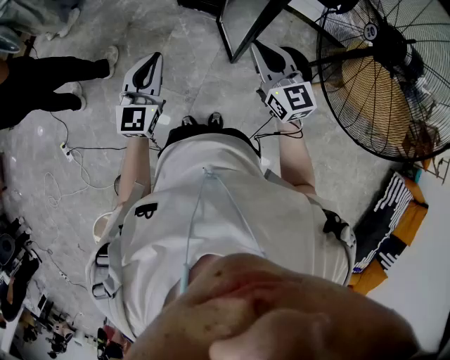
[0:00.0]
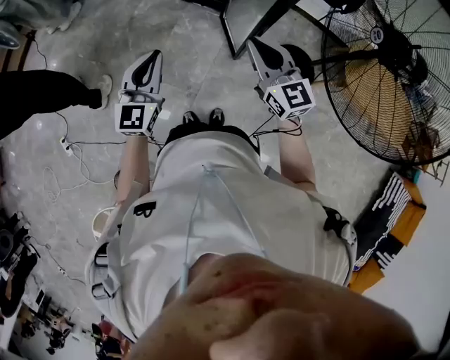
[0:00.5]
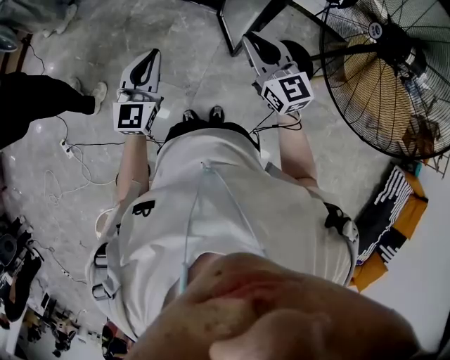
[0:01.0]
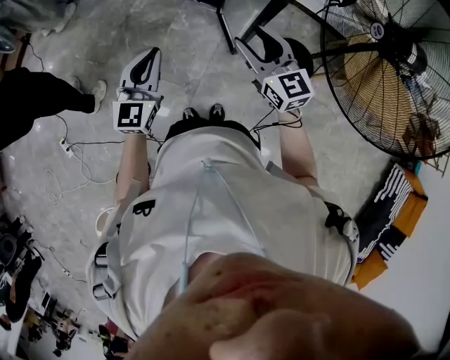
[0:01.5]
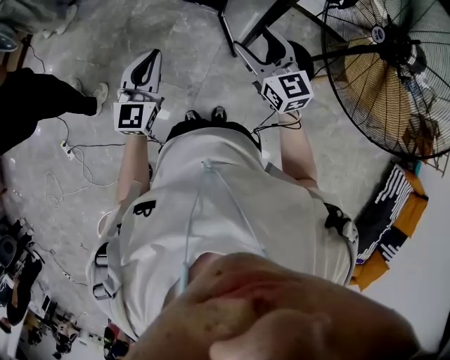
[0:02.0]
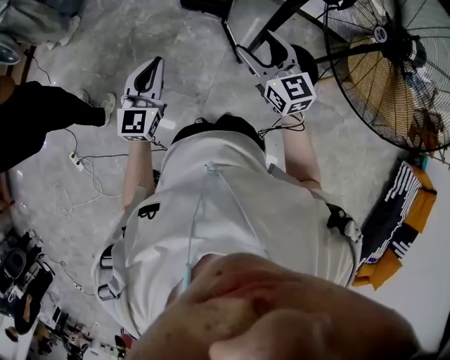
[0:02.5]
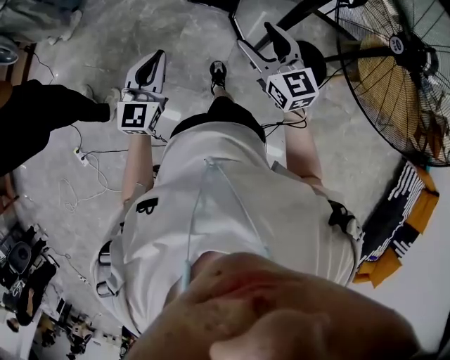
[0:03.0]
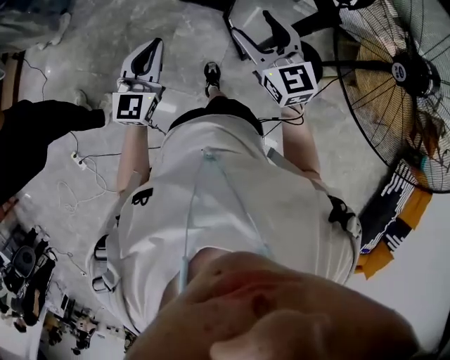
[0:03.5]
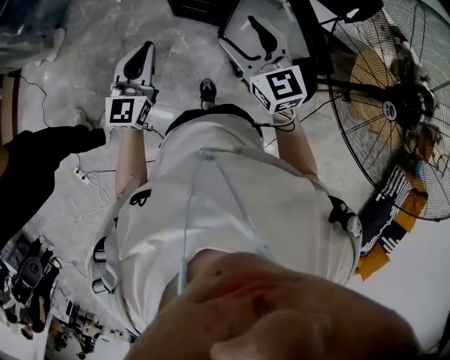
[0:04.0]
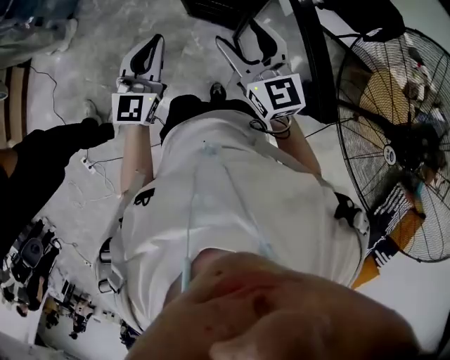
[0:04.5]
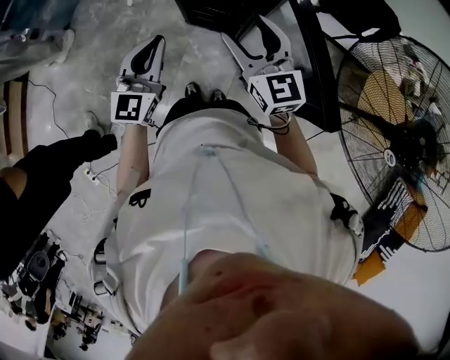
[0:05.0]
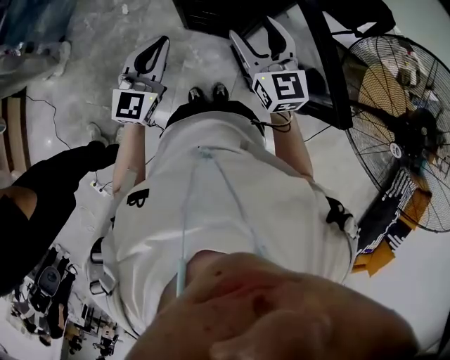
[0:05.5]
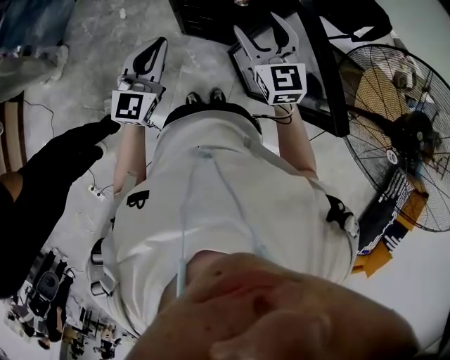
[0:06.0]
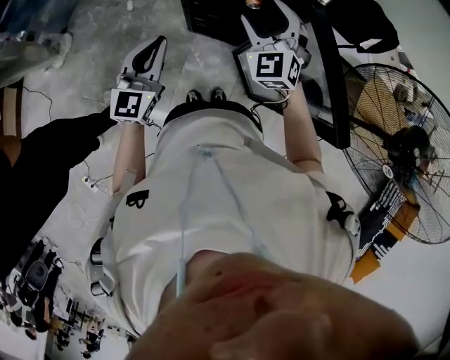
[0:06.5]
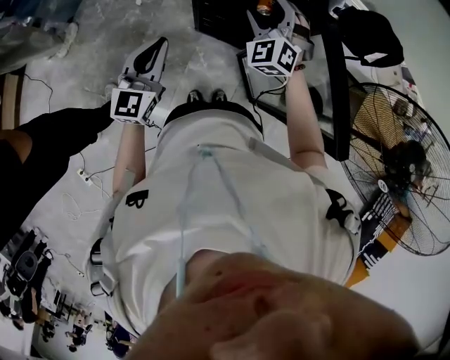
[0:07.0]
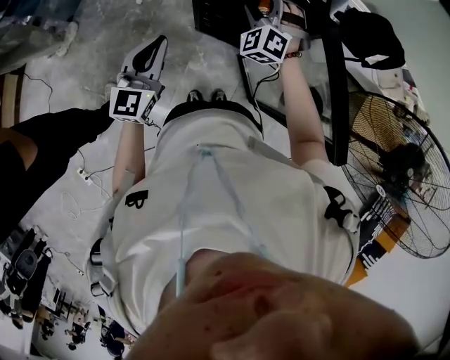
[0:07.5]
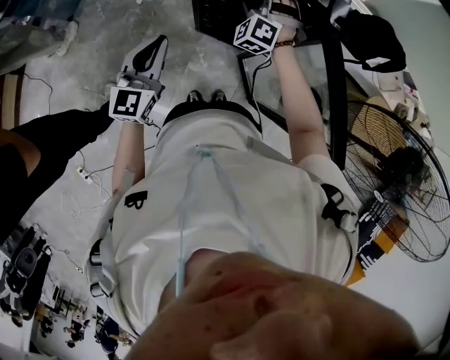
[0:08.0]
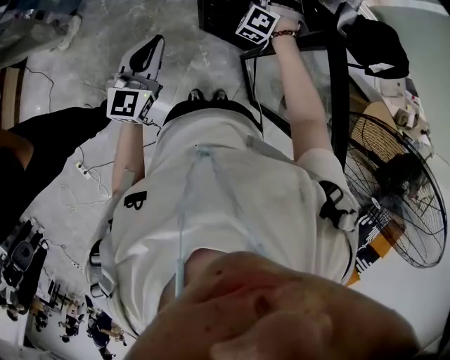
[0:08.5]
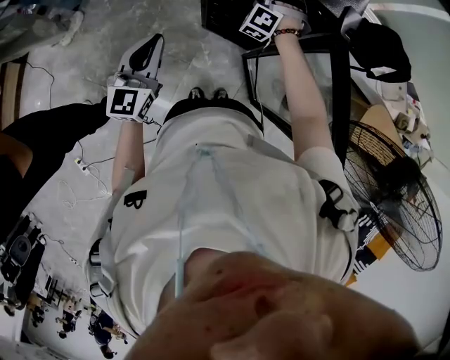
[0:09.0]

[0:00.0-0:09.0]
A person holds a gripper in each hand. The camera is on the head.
0:00.0 to 0:02.0: The right gripper is displaced to the left by roughly 5 cm, and opens its fingers.
0:02.0 to 0:04.5: The two grippers go about 35 cm forward.
0:04.5 to 0:07.0: The left gripper shifts roughly 15 cm to the left and forward. Meanwhile the right gripper shifts roughly 20 cm forward, and twists approximately 50 degrees counterclockwise, seen from behind.
0:07.0 to 0:09.0: The right gripper shifts approximately 15 cm forward and downward, rotates roughly 30 degrees, and closes up.

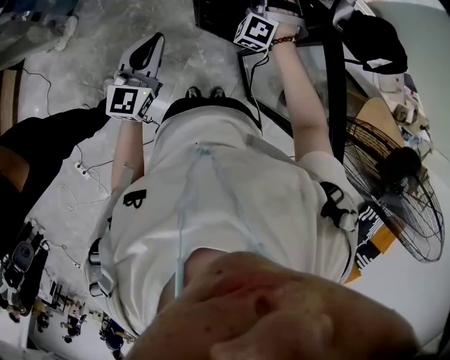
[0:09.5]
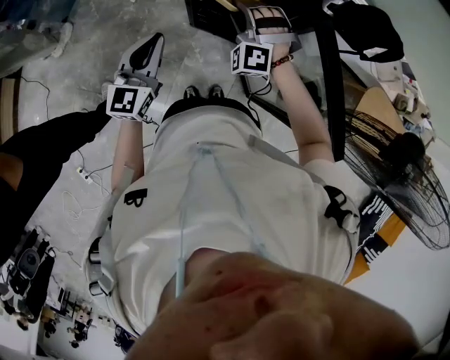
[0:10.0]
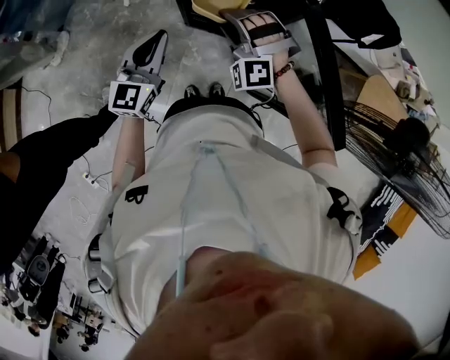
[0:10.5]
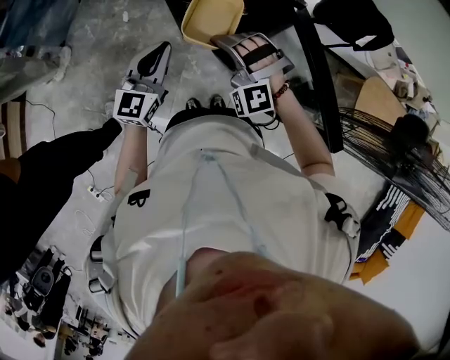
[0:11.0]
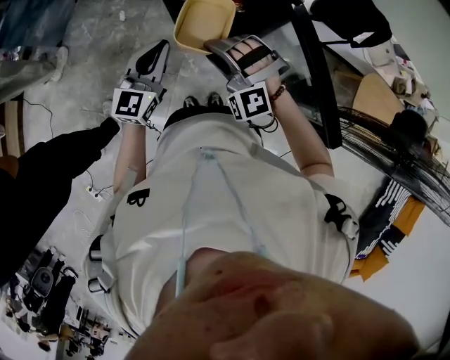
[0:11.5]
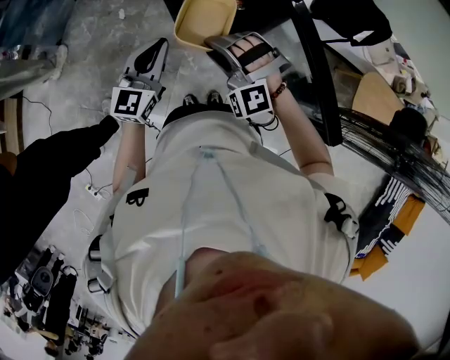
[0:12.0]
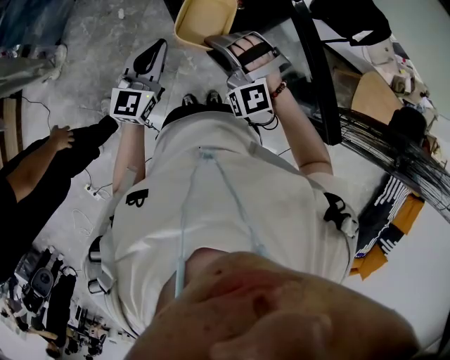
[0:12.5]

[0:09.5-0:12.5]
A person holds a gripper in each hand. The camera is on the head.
0:09.5 to 0:11.0: The right gripper goes approximately 20 cm backward, and changes its angle by about 30 degrees; the left gripper goes some 10 cm to the right.
0:11.0 to 0:12.5: There are only small adjustments of the grippers.

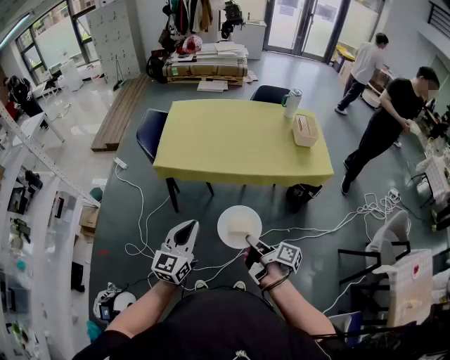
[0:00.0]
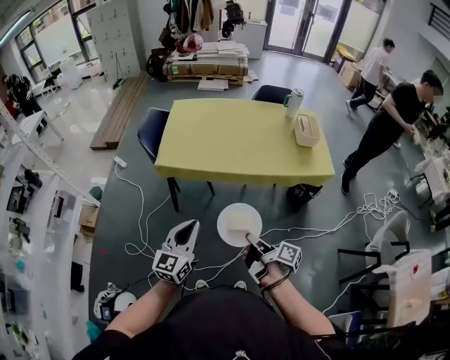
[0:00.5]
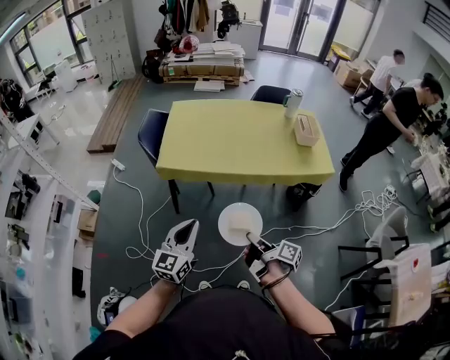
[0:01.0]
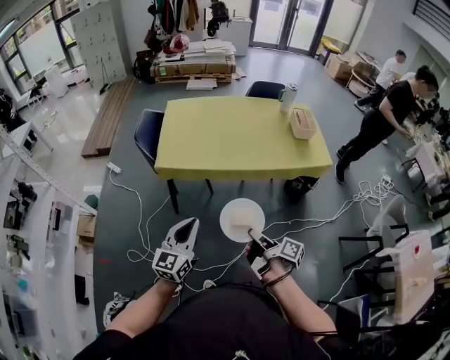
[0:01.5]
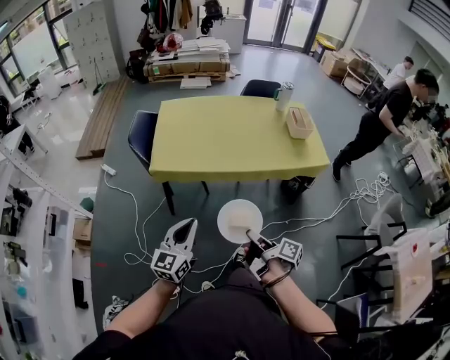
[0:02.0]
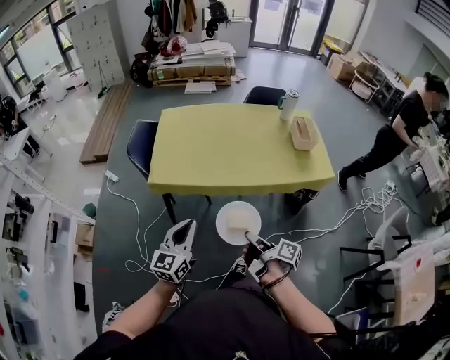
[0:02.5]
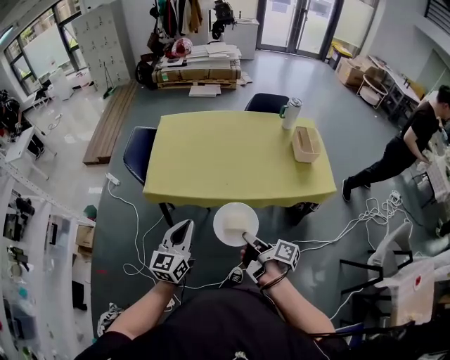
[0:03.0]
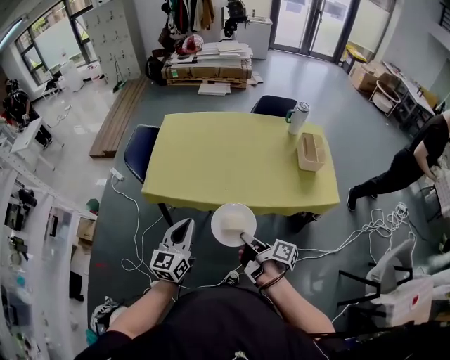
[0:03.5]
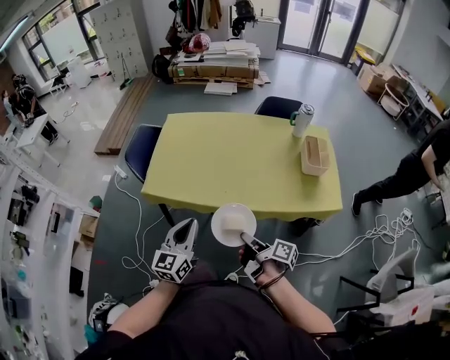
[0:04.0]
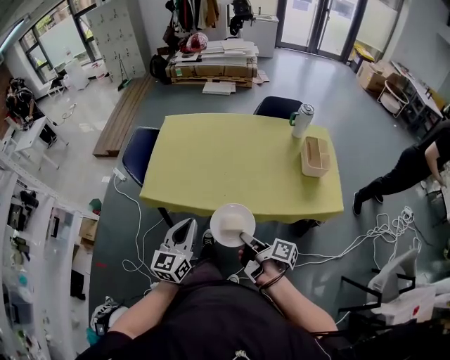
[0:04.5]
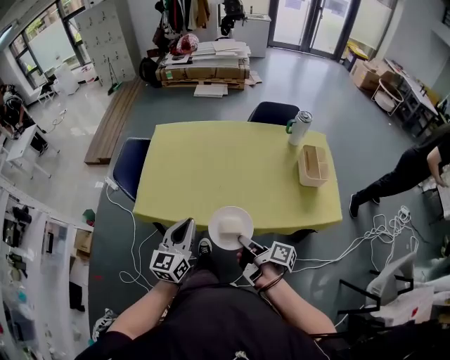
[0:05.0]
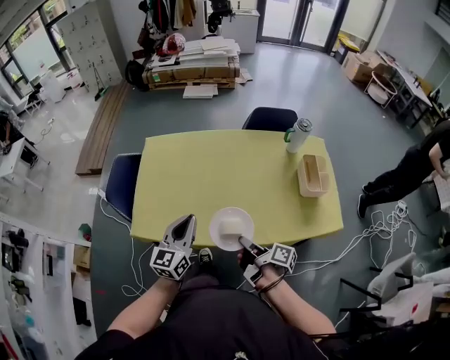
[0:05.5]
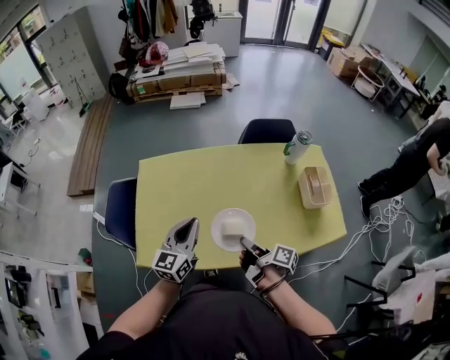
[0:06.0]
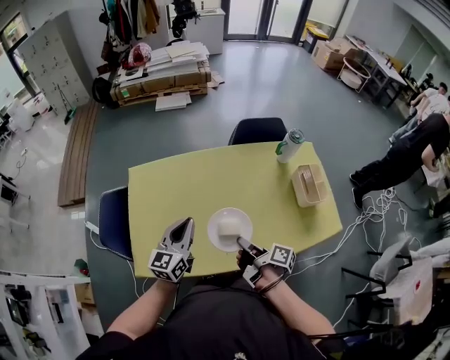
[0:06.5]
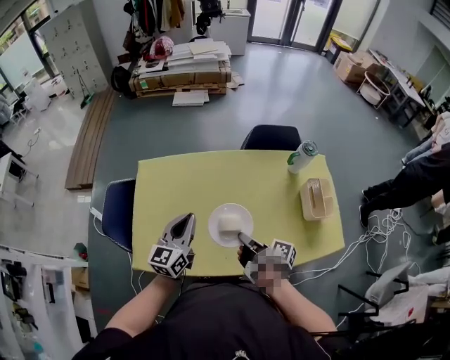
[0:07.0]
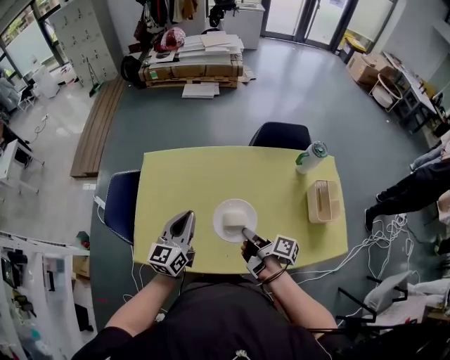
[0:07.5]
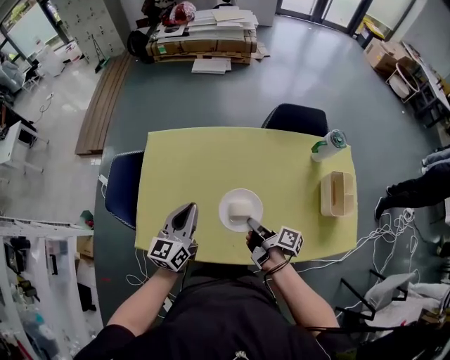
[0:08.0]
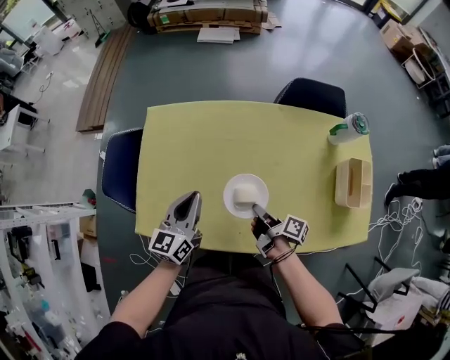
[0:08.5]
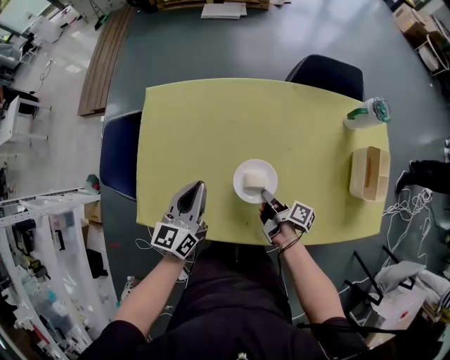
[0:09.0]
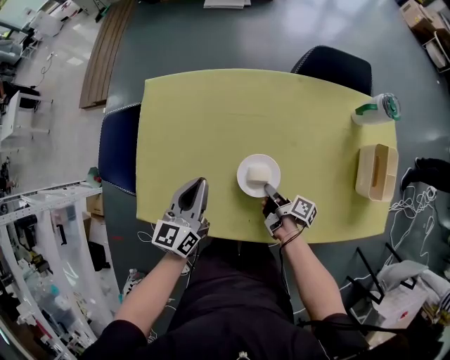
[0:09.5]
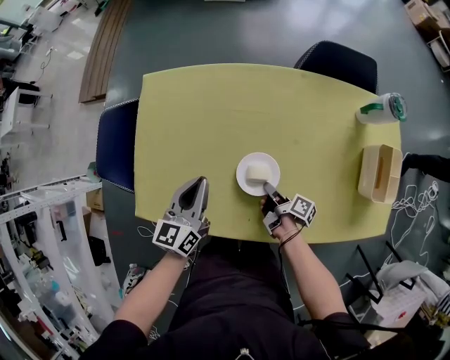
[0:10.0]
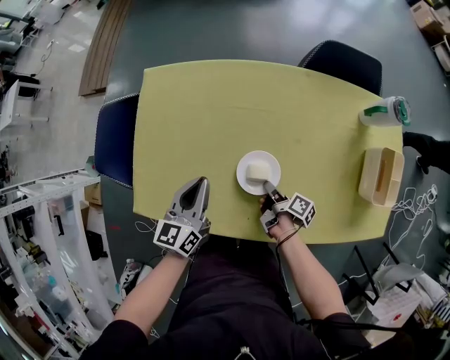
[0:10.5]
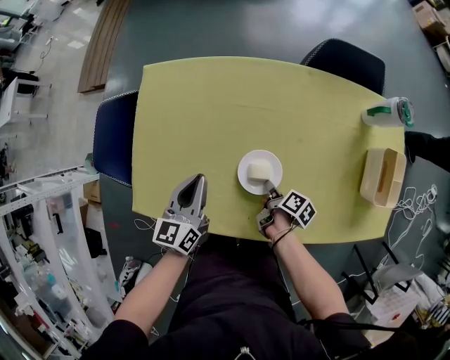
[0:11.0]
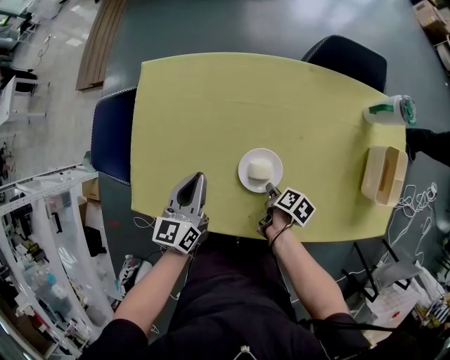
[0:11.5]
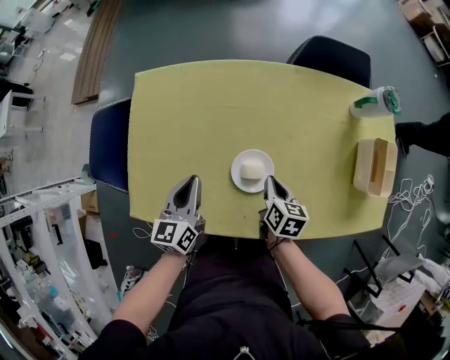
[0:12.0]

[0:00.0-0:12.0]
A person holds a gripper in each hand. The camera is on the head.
0:00.0 to 0:02.0: The left gripper ends up approximately 10 cm from where it was.
0:02.0 to 0:04.0: The left gripper shifts by approximately 25 cm.
0:04.0 to 0:06.0: The left gripper changes place by roughly 35 cm.
0:06.0 to 0:08.0: The left gripper ends up approximately 10 cm from where it was.
0:08.0 to 0:10.0: The left gripper goes approximately 15 cm downward.

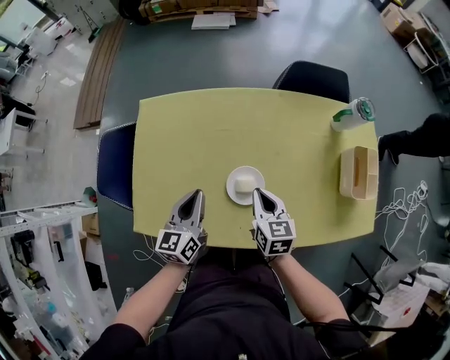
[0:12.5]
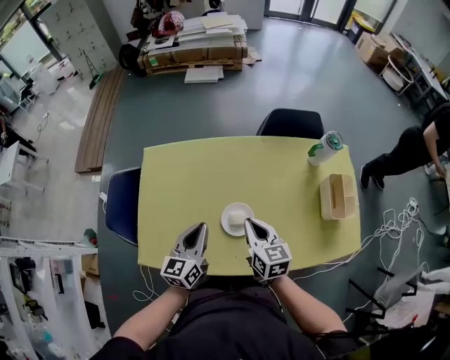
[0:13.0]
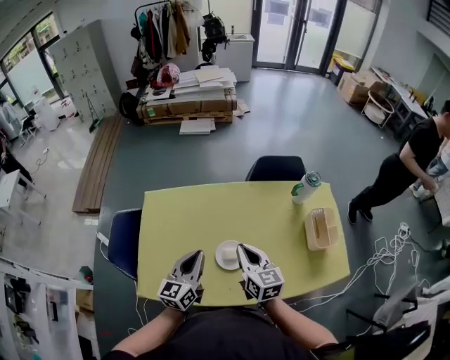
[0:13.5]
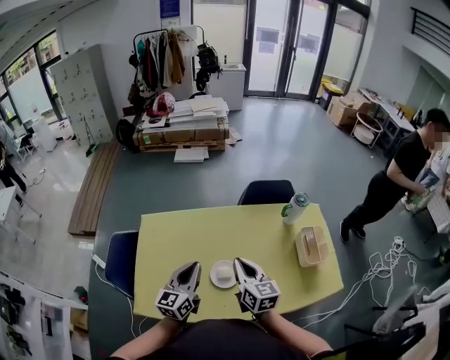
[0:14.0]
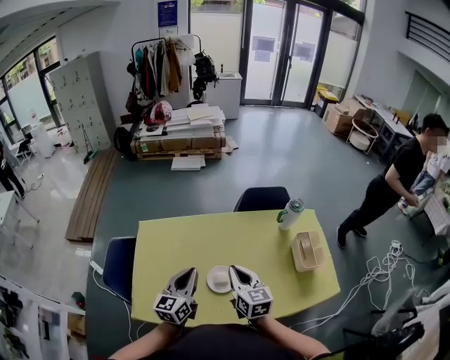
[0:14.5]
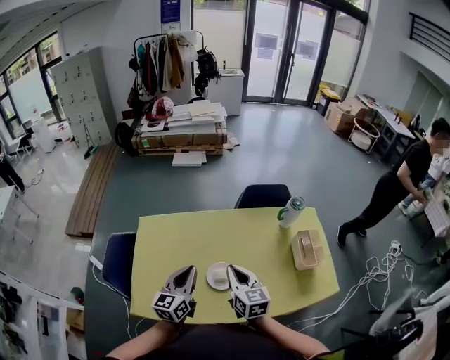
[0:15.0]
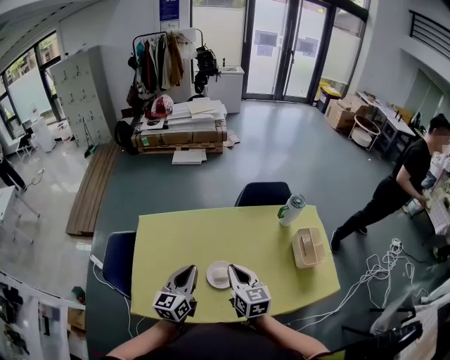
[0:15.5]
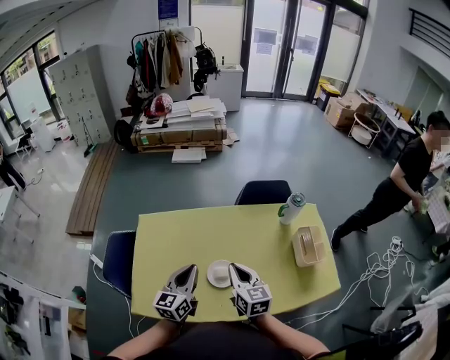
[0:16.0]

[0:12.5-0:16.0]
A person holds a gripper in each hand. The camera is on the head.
0:12.5 to 0:14.5: The left gripper travels upward by about 15 cm.
